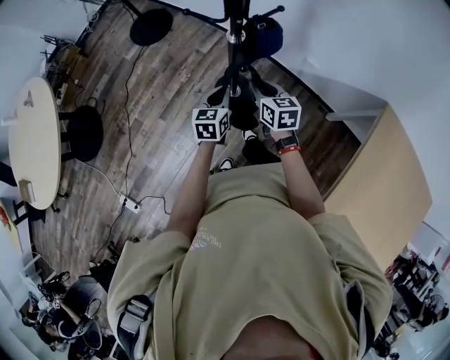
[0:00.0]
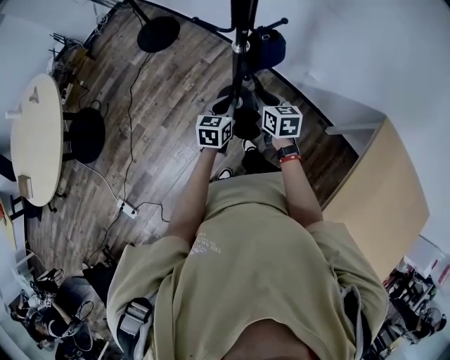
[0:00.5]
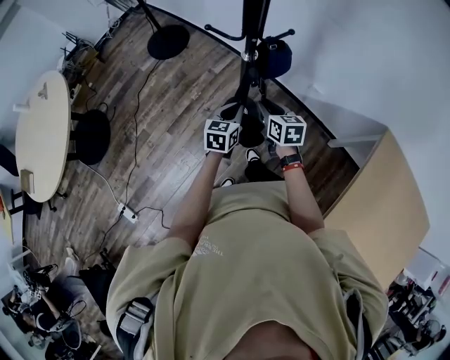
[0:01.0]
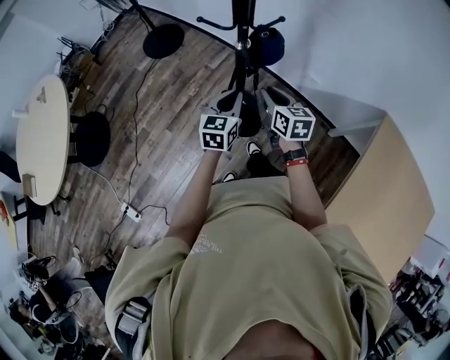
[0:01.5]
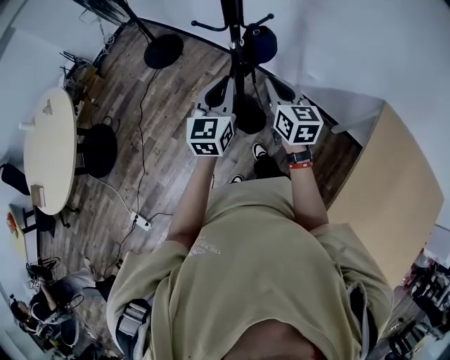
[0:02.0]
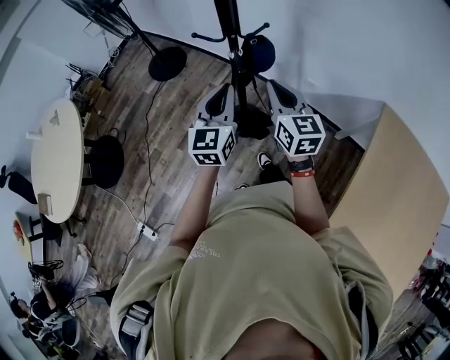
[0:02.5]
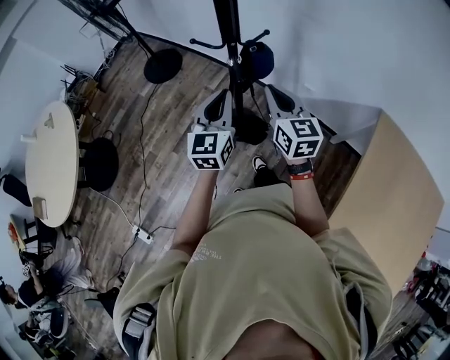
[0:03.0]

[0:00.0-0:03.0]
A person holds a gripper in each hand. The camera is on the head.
0:00.0 to 0:01.5: The grippers both shift upward by about 10 cm.
0:01.5 to 0:03.0: Both grippers move upward, roughly 15 cm. The right gripper changes its angle by roughly 20 degrees.

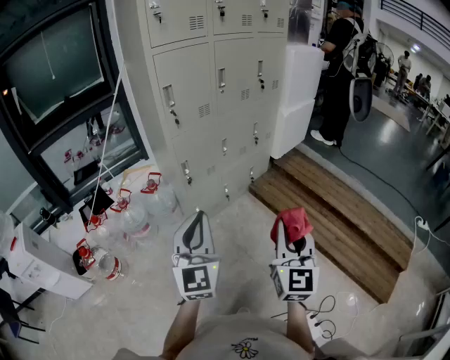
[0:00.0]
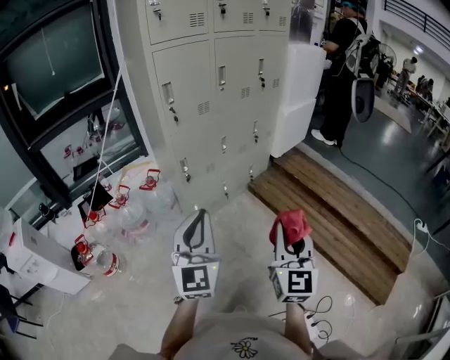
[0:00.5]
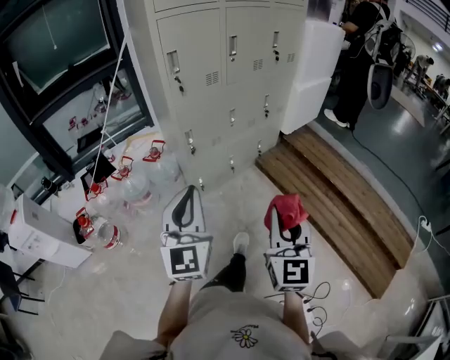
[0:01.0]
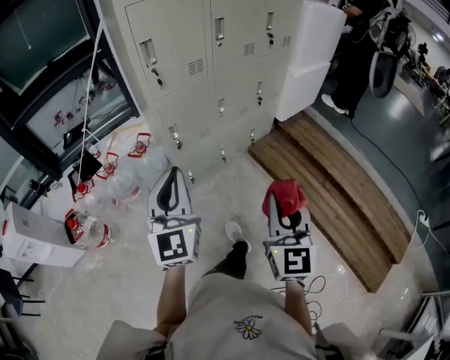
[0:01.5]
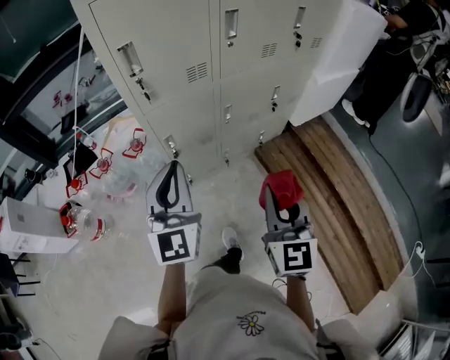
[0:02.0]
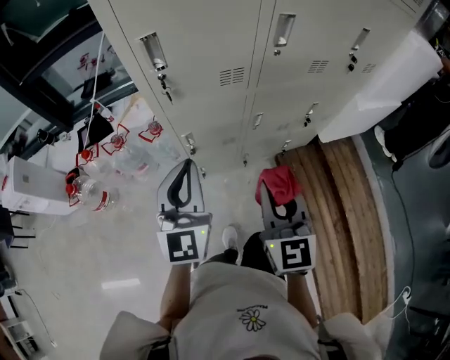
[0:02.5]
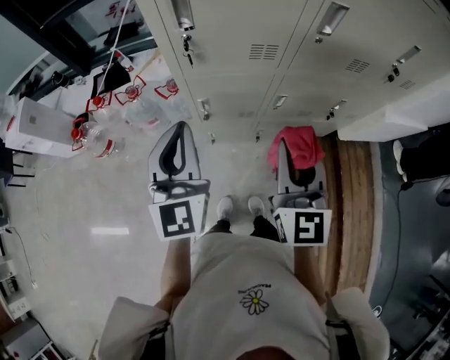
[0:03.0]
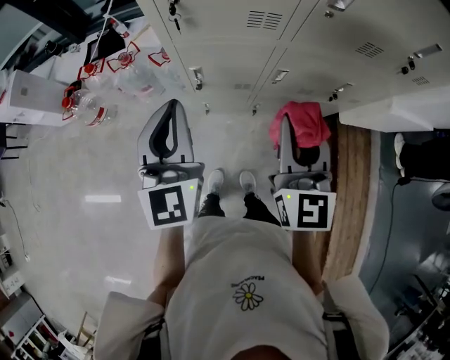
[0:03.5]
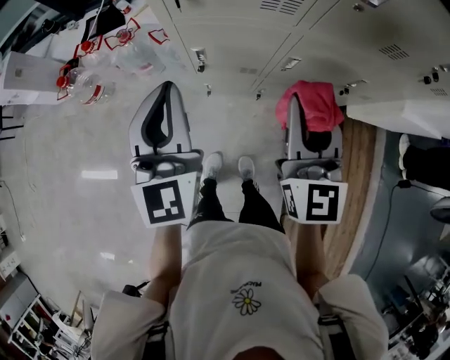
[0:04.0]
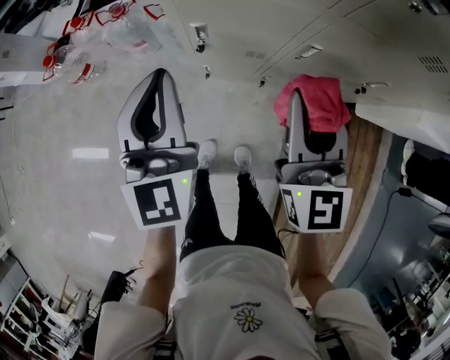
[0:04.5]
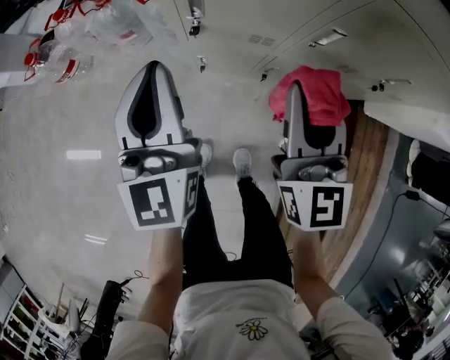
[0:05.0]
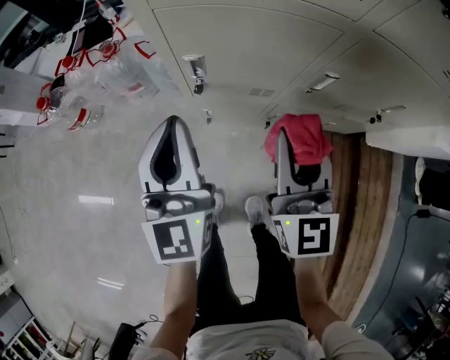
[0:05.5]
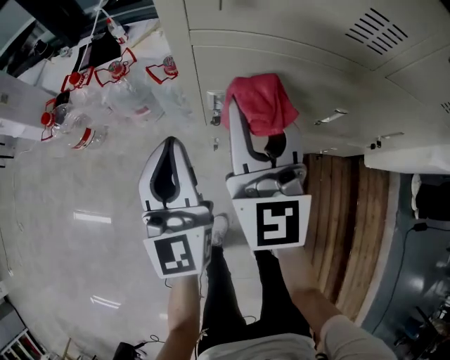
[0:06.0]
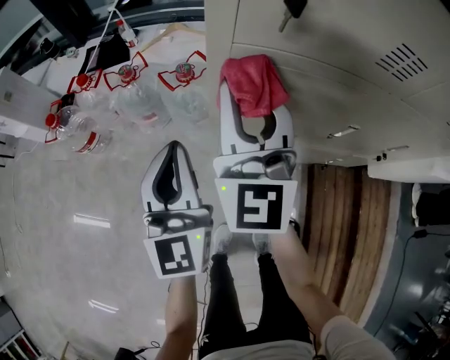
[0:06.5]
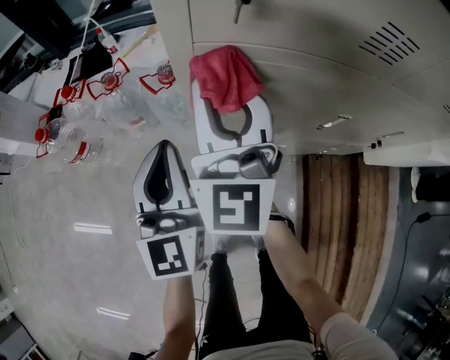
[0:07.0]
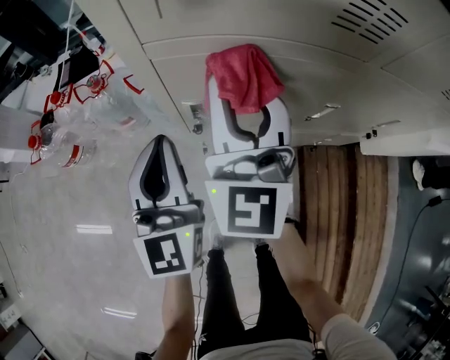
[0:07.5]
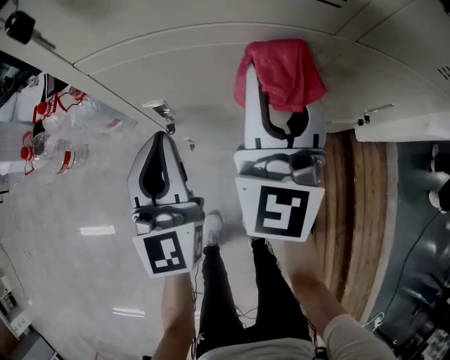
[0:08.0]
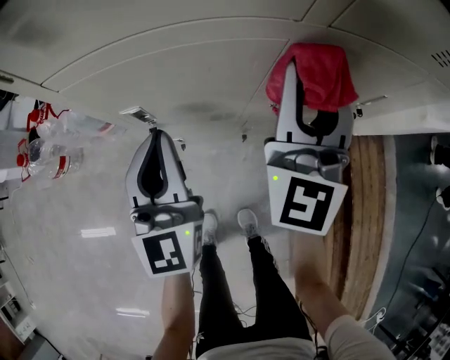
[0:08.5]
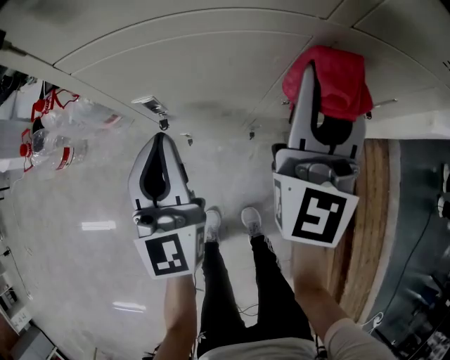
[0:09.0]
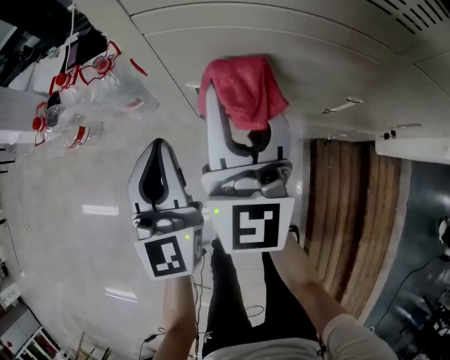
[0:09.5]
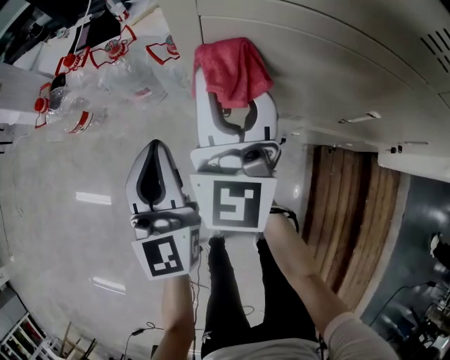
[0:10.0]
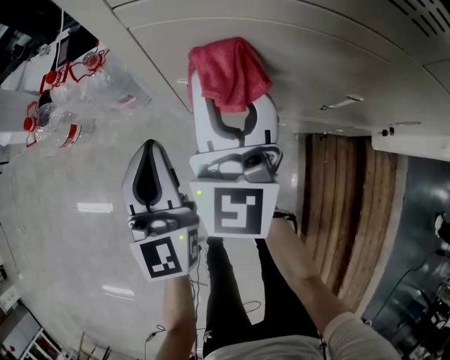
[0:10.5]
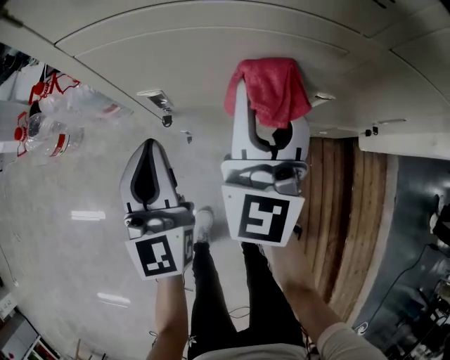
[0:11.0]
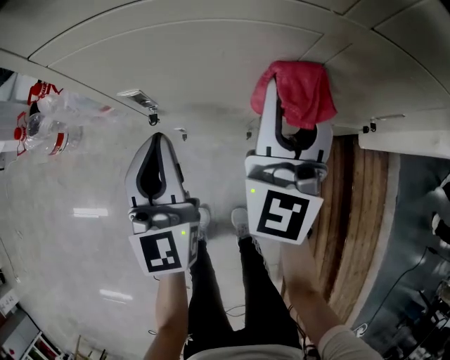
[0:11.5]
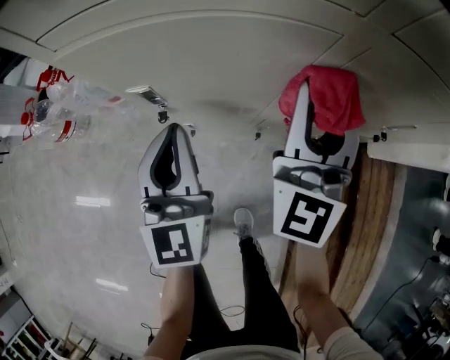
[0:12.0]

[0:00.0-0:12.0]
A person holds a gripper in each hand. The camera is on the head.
0:00.0 to 0:02.0: Both grippers travel together forward, roughly 30 cm. The right gripper rotates approximately 20 degrees.
0:02.0 to 0:04.0: The right gripper changes place by some 25 cm, and changes its angle by about 30 degrees. Meanwhile the left gripper shifts by some 10 cm, and swivels roughly 30 degrees.
0:04.0 to 0:06.0: The right gripper moves forward, to the left and downward, approximately 25 cm. Meanwhile the left gripper shifts some 20 cm downward and forward.
0:06.0 to 0:08.0: Both grippers travel together to the right, approximately 10 cm. The right gripper rotates about 20 degrees.
0:08.0 to 0:10.0: The two grippers go roughly 15 cm to the left.
0:10.0 to 0:12.0: The right gripper moves to the right, about 25 cm, while the left gripper goes approximately 15 cm to the right.

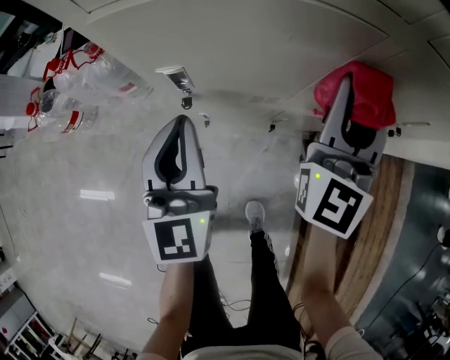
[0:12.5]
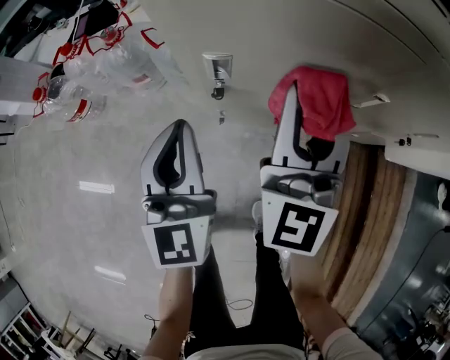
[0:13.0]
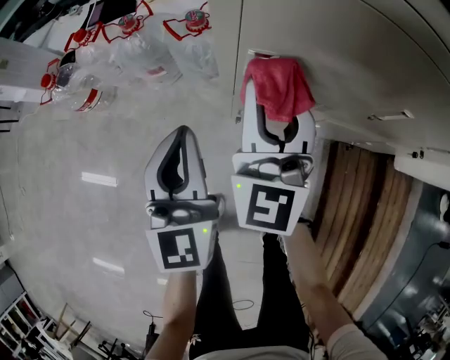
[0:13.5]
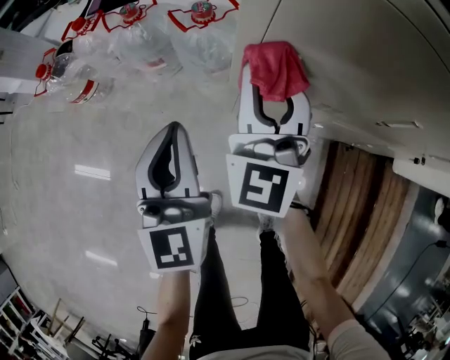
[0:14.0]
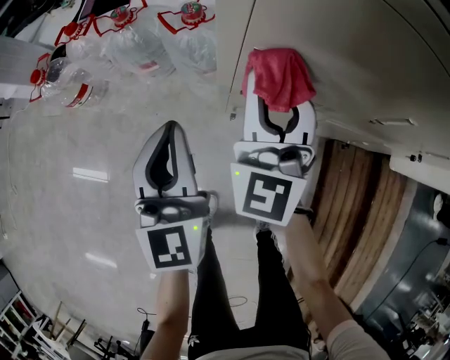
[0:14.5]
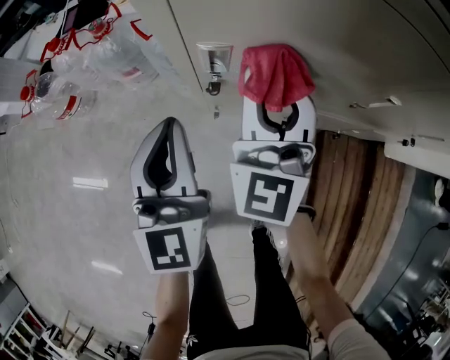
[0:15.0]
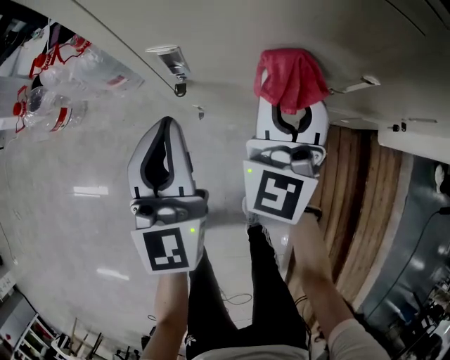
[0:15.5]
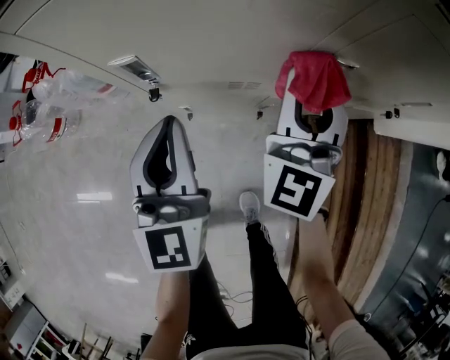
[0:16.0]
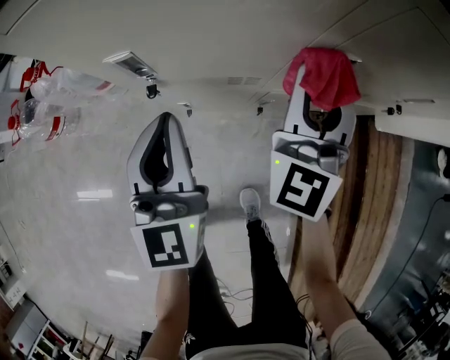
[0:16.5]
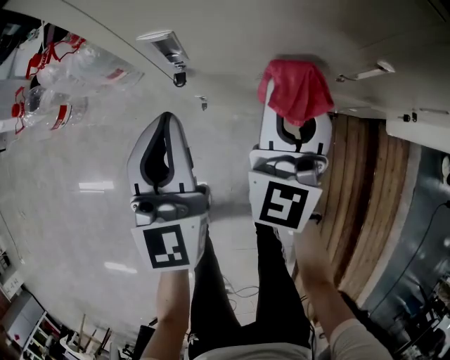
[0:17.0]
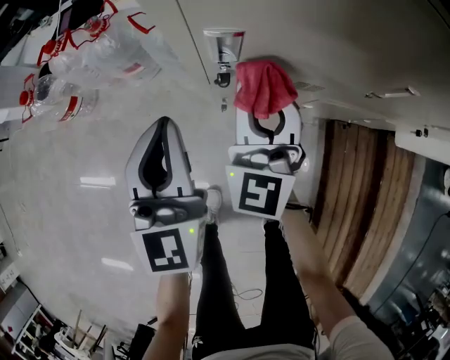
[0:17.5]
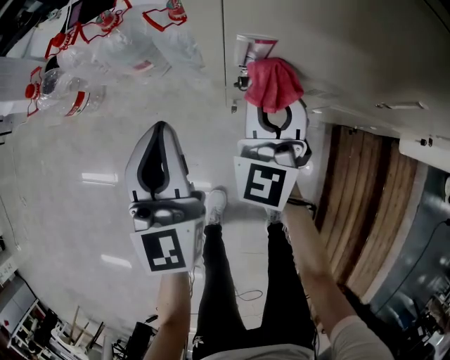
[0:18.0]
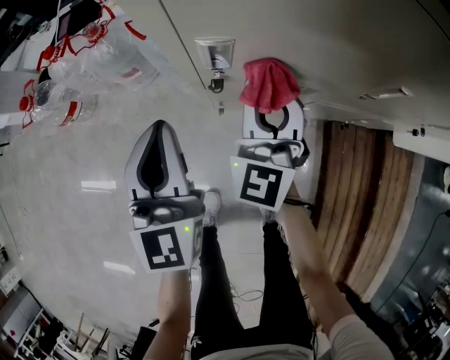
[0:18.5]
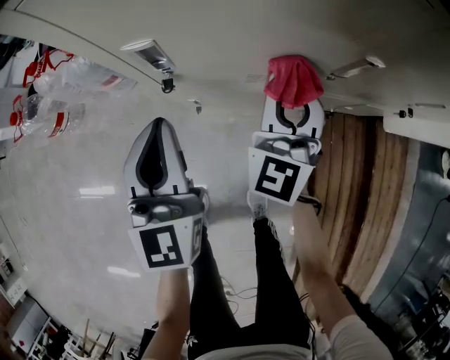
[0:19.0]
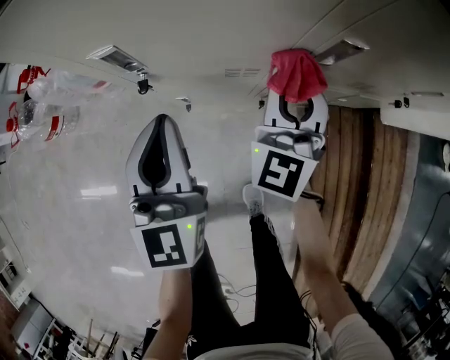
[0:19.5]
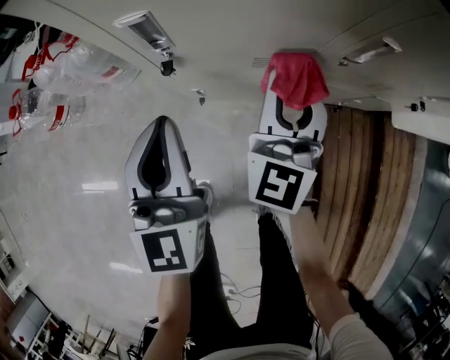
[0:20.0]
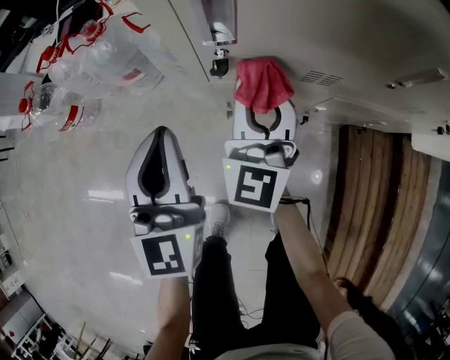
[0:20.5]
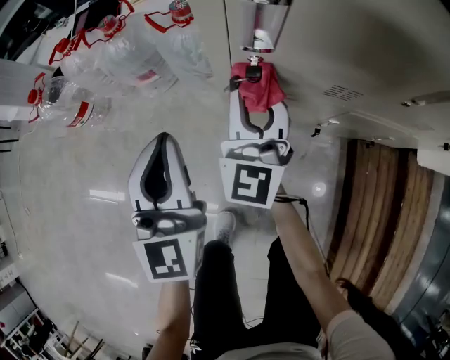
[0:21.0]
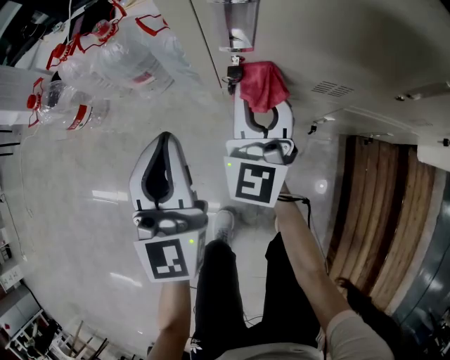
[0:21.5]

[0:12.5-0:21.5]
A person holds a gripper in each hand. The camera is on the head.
0:12.5 to 0:14.5: The right gripper heads to the left, covering about 25 cm, and swivels roughly 20 degrees, while the left gripper moves to the left, about 15 cm.
0:14.5 to 0:17.0: The two grippers go some 15 cm to the right.
0:17.0 to 0:19.5: The left gripper goes to the left and returns, roughly 10 cm each way; the right gripper moves to the right, about 10 cm.
0:19.5 to 0:21.5: The grippers both shift to the left by roughly 20 cm.

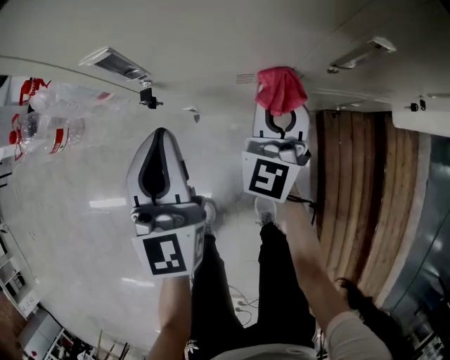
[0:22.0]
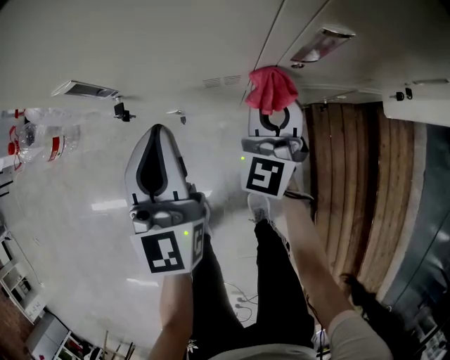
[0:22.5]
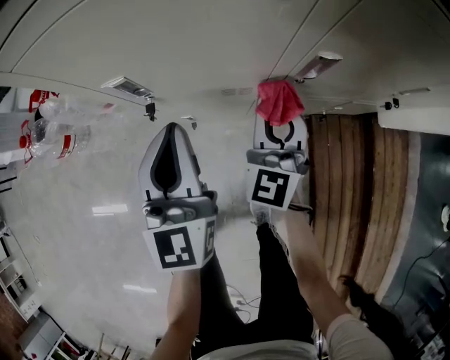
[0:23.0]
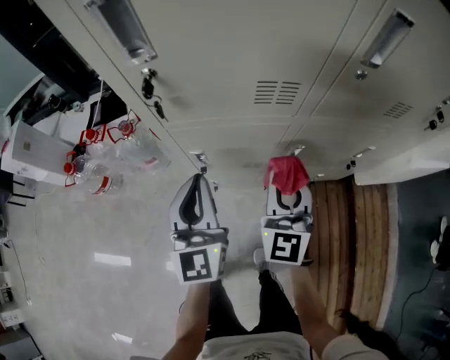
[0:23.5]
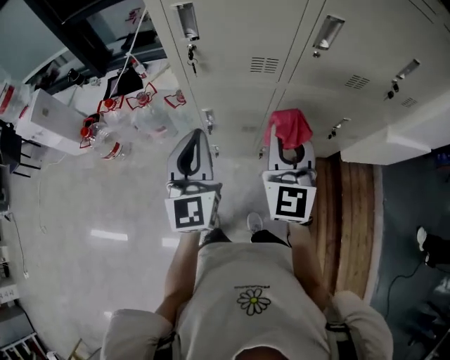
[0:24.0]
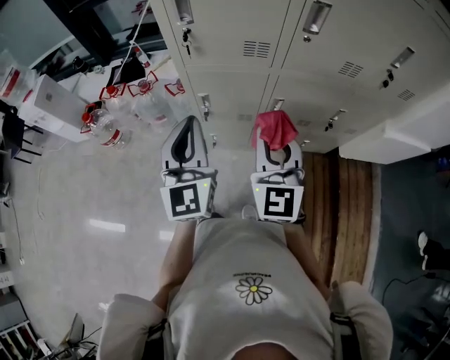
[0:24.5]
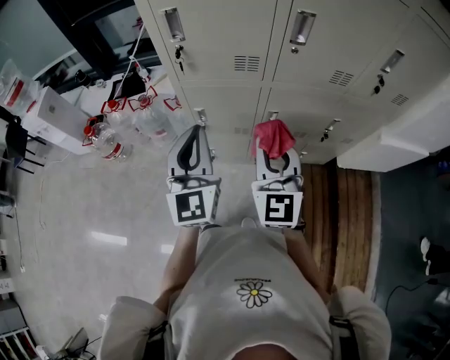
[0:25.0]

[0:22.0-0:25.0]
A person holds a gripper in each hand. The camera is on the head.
0:22.0 to 0:23.5: Both grippers move upward, roughly 25 cm.
0:23.5 to 0:25.0: Both grippers move backward and upward, some 20 cm.
